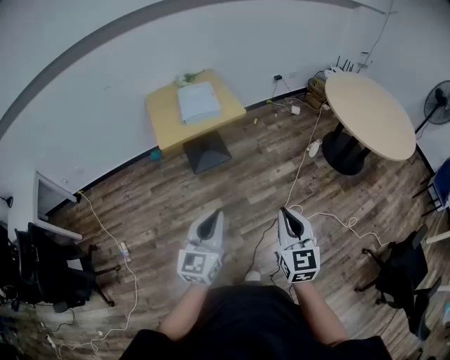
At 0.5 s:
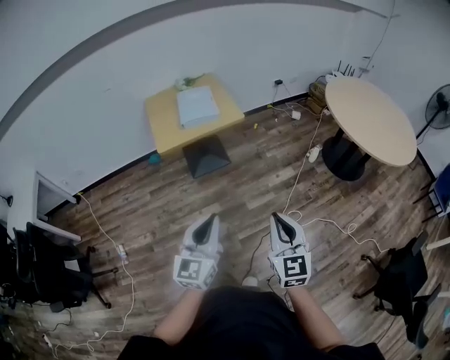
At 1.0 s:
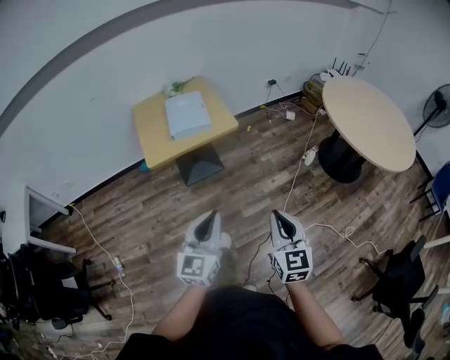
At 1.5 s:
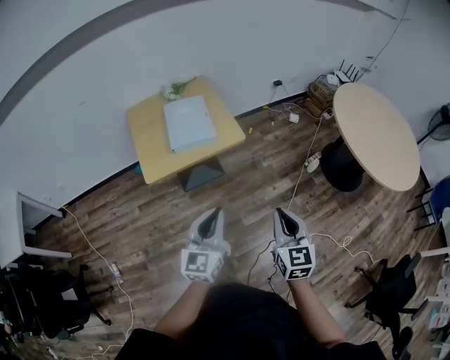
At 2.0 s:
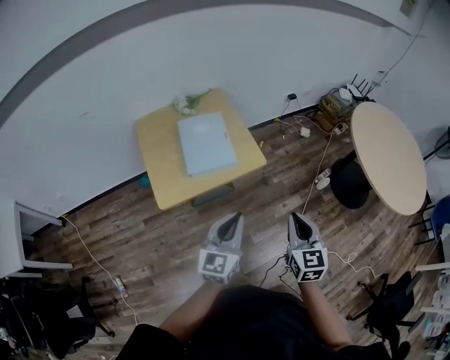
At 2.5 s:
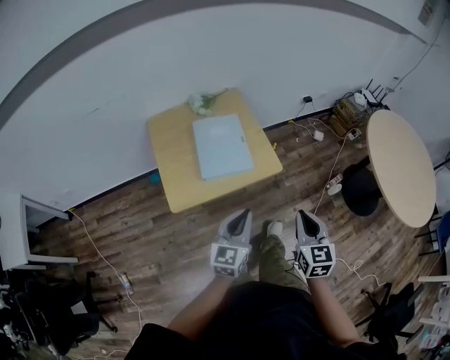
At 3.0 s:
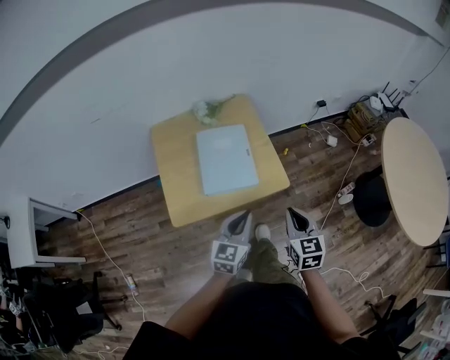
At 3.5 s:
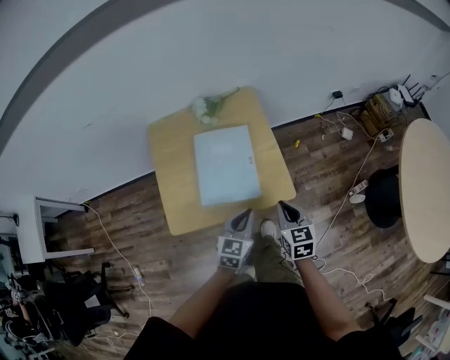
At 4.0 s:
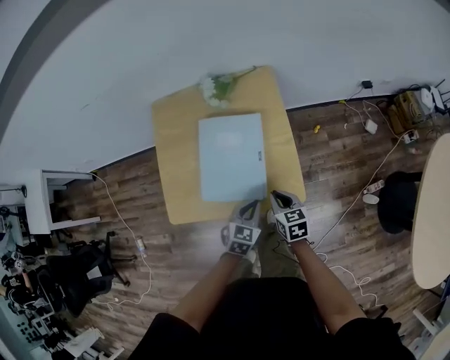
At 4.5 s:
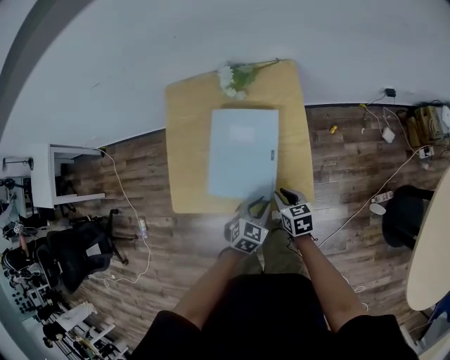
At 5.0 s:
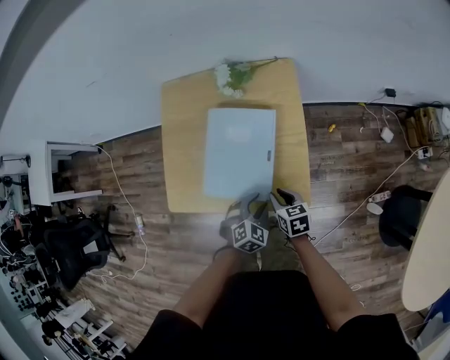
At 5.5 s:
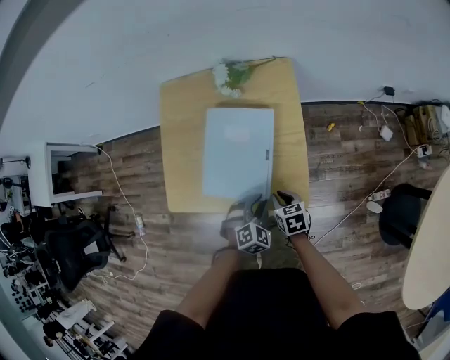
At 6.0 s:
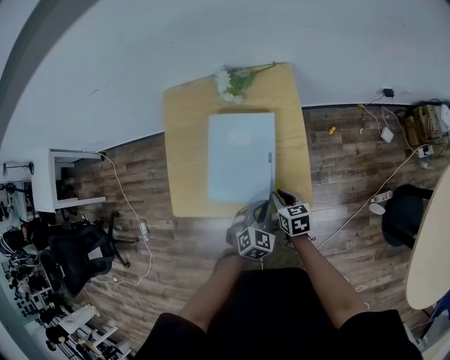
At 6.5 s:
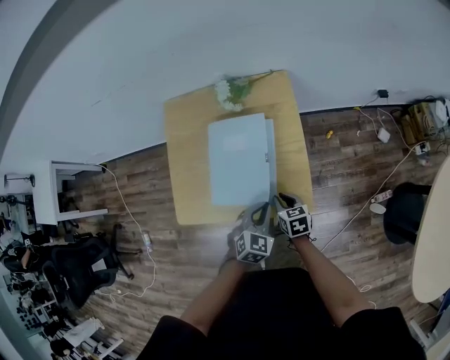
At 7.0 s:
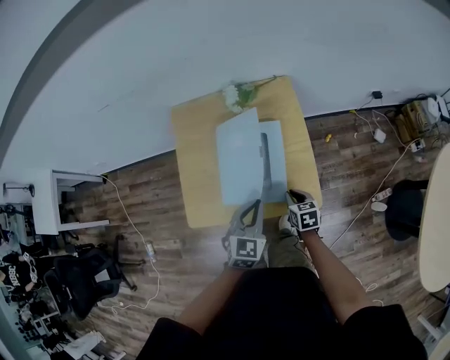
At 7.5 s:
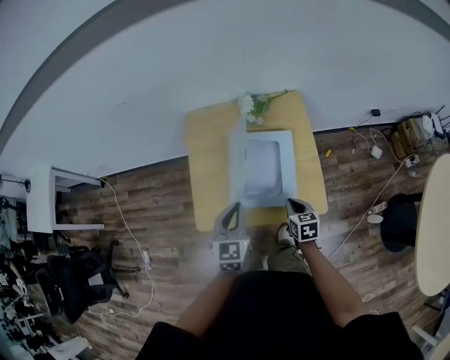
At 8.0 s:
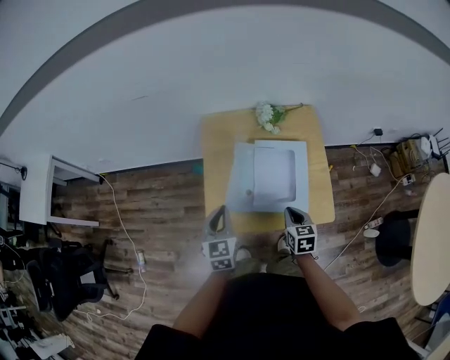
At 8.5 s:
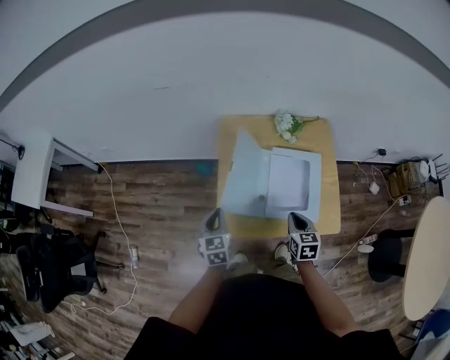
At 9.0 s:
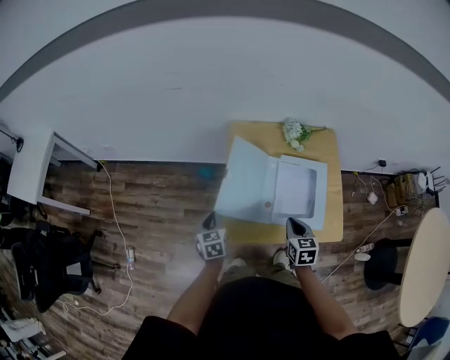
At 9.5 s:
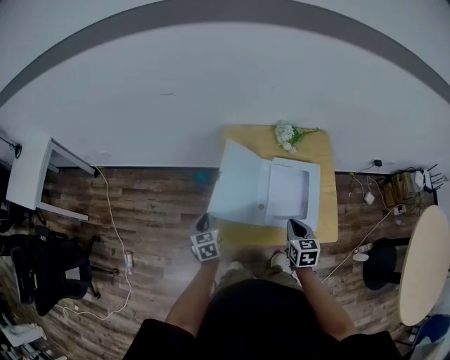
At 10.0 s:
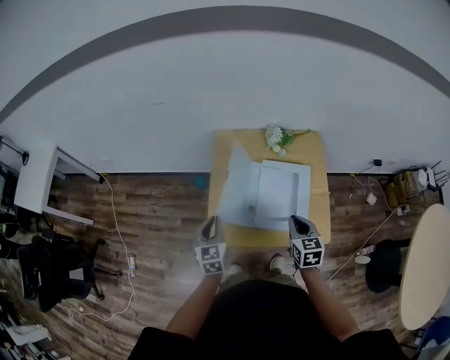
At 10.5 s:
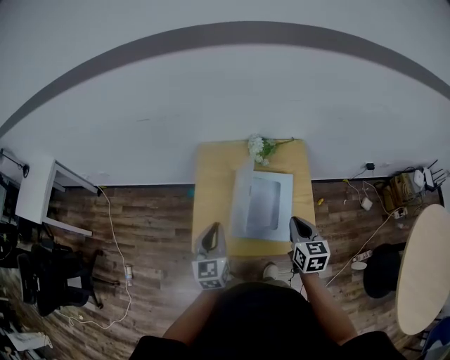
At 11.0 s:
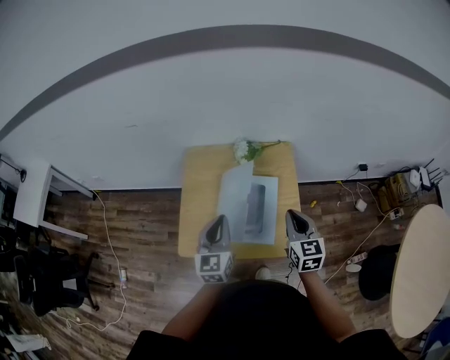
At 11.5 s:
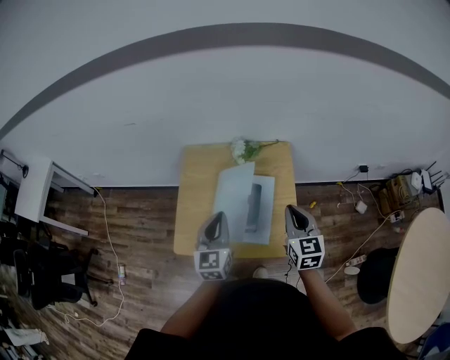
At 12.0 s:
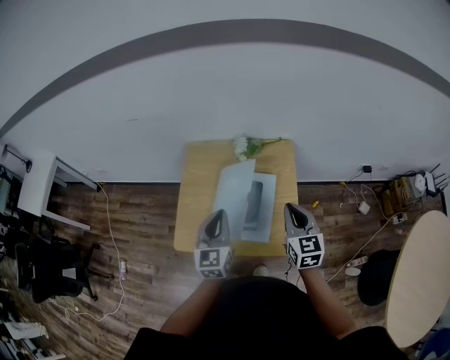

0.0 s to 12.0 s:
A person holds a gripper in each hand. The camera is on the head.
0.0 to 2.0 s: The two grippers travel together, forward, approximately 50 cm.
2.0 to 4.0 s: The right gripper shifts by some 50 cm, and changes its angle by about 40 degrees. The left gripper moves approximately 50 cm, and angles its fingers downward, by some 40 degrees.
4.0 to 6.0 s: The left gripper opens, then closes again. The right gripper changes place by approximately 5 cm.
6.0 to 8.0 s: The left gripper travels to the left and upward by approximately 40 cm, and turns by some 40 degrees. Meanwhile the right gripper moves to the left and upward, approximately 20 cm.
8.0 to 10.0 s: The right gripper moves upward, some 10 cm, and goes to the left and returns, approximately 10 cm each way. The left gripper reaches about 15 cm to the left, then returns.
10.0 to 12.0 s: The grippers both shift to the right and upward by approximately 25 cm.

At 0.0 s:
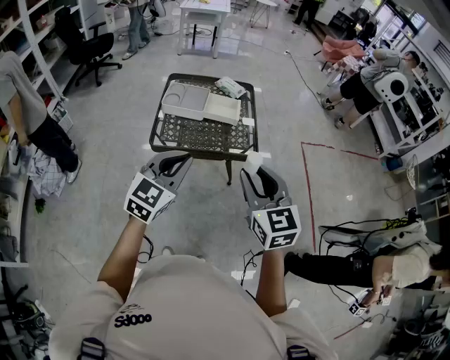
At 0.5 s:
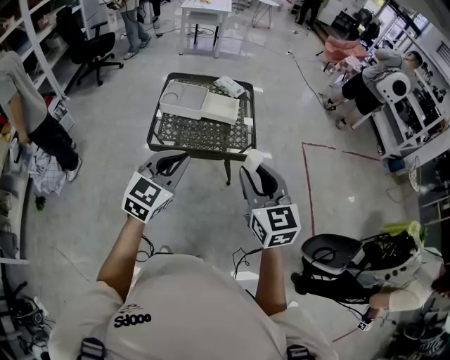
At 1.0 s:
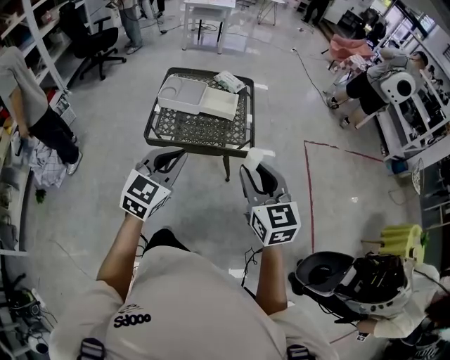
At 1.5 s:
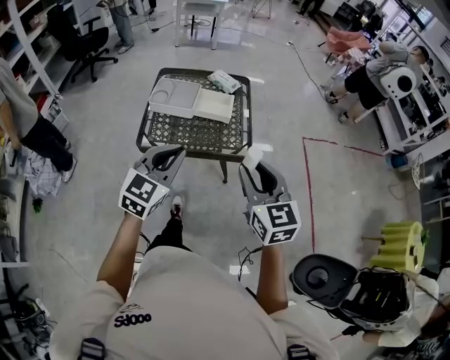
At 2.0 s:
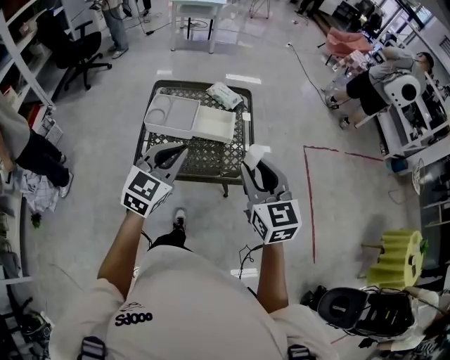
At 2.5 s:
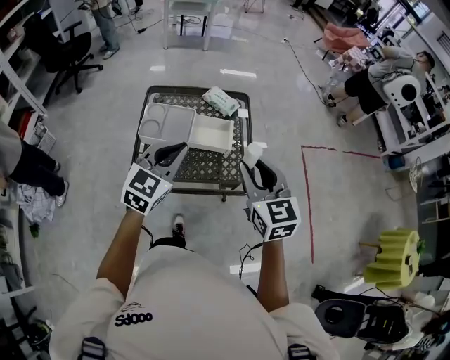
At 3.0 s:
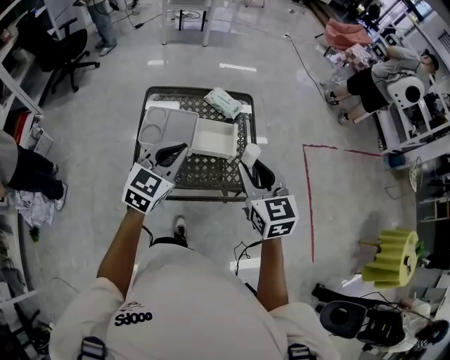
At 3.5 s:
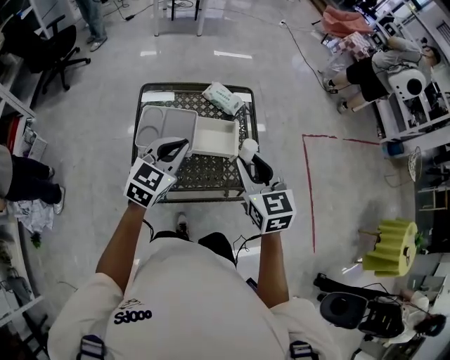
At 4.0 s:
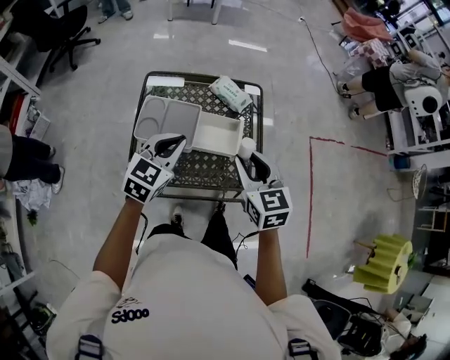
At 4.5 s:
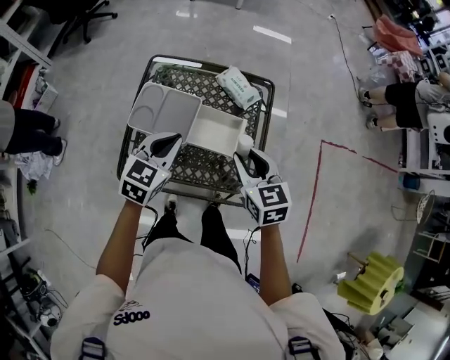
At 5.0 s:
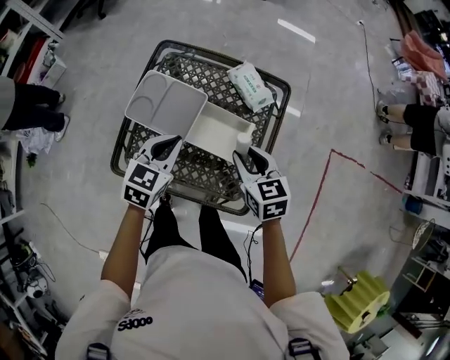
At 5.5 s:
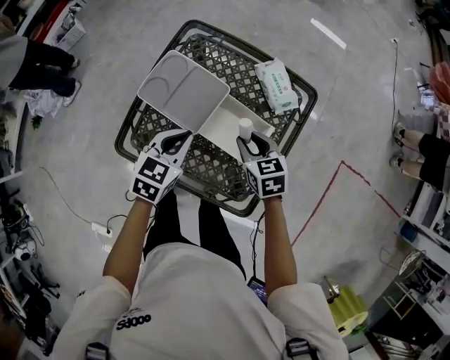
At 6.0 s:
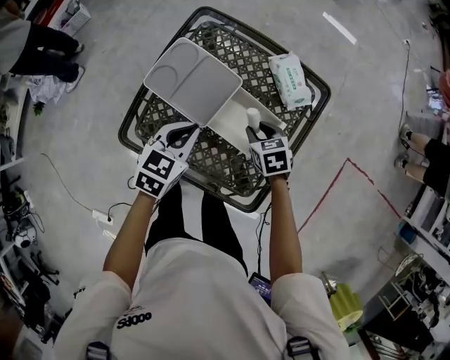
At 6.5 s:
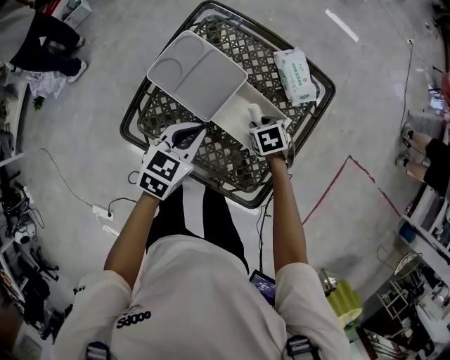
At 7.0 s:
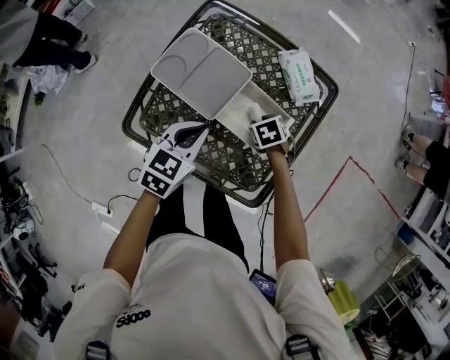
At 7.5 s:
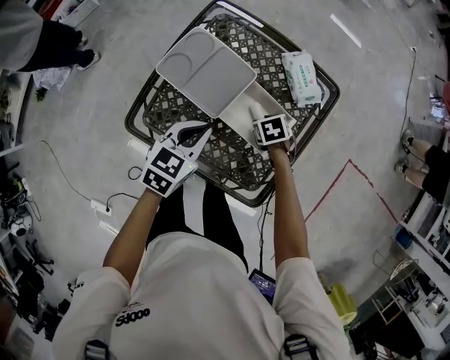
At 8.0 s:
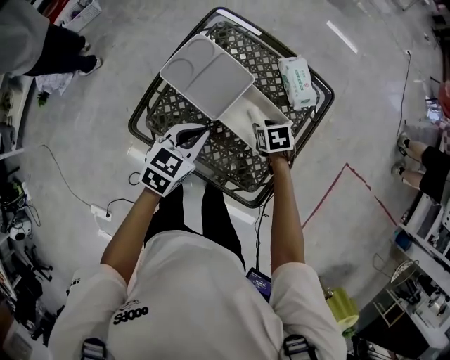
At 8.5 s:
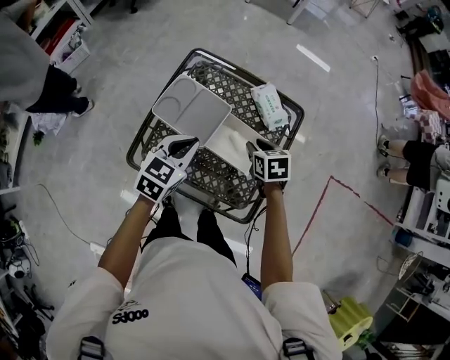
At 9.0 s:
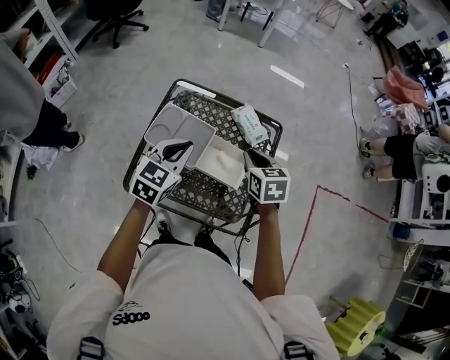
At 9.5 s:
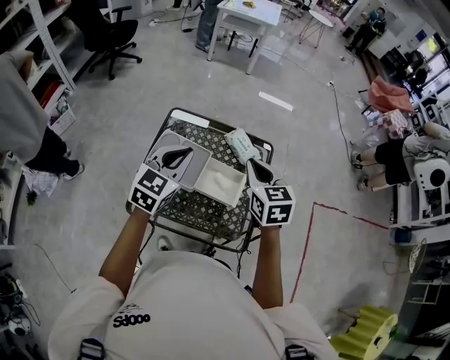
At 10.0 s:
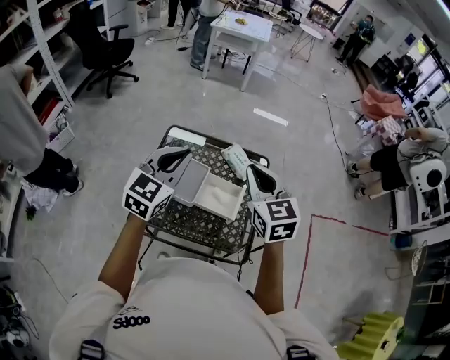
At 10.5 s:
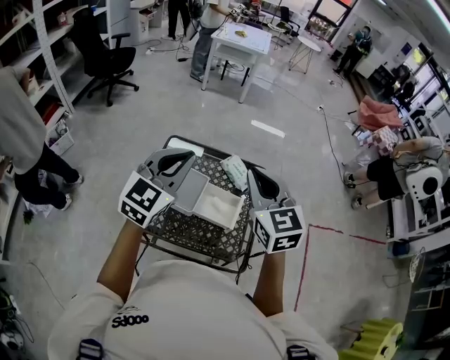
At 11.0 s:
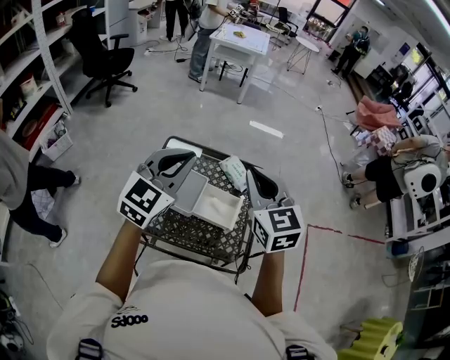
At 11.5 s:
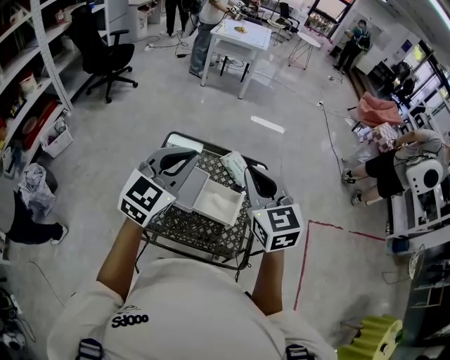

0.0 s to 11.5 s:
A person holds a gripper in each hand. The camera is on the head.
0.0 to 2.0 s: Both grippers move forward, roughly 20 cm.
2.0 to 4.0 s: Both grippers travel together forward and downward, some 20 cm.
4.0 to 6.0 s: The left gripper shifts roughly 15 cm downward, and rotates approximately 30 degrees. The right gripper travels downward by some 30 cm, and tilts its fingers roughly 30 degrees downward.
6.0 to 7.5 s: The right gripper goes roughly 5 cm downward.
7.5 to 9.5 s: The right gripper goes about 40 cm upward, points its fingers some 50 degrees further upward, and closes up. Meanwhile the left gripper moves upward, approximately 20 cm, and changes its angle by some 30 degrees.
9.5 to 11.5 s: The two grippers go some 10 cm upward.

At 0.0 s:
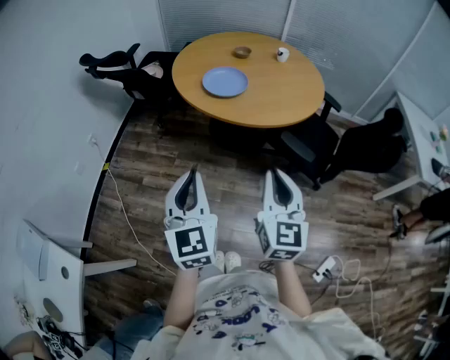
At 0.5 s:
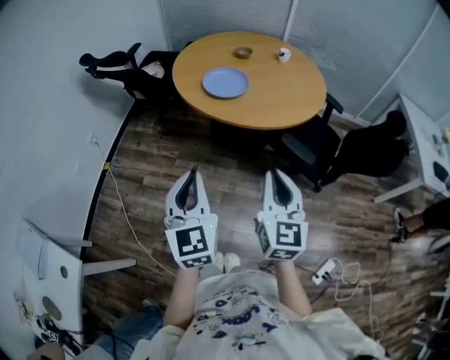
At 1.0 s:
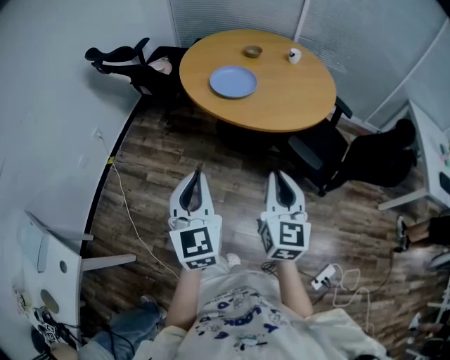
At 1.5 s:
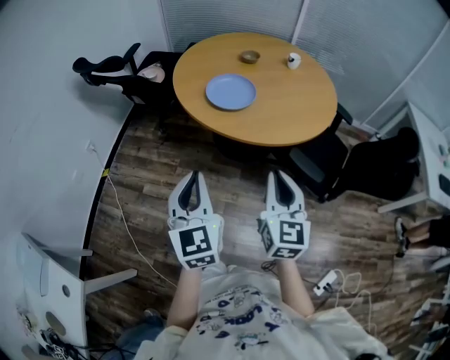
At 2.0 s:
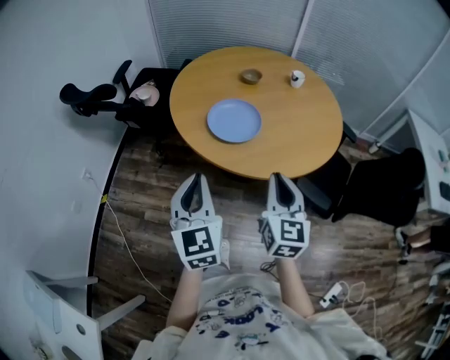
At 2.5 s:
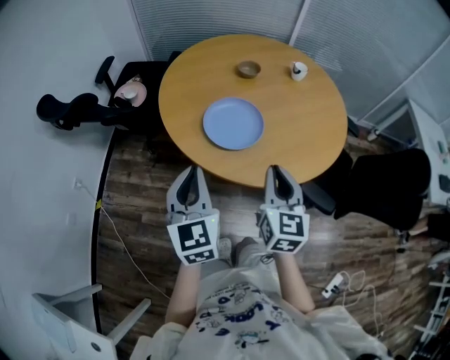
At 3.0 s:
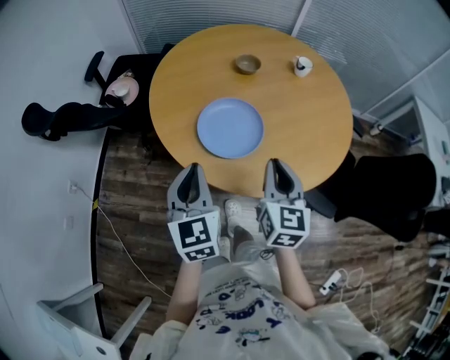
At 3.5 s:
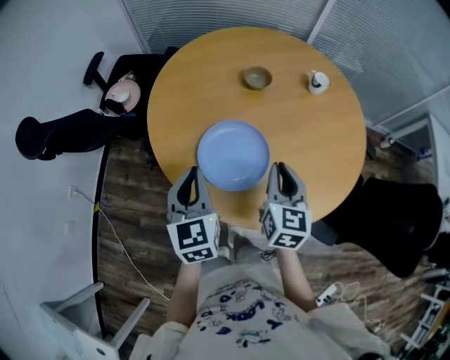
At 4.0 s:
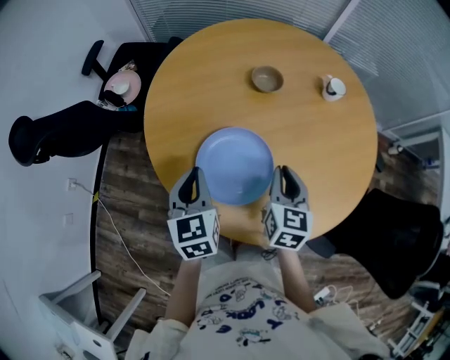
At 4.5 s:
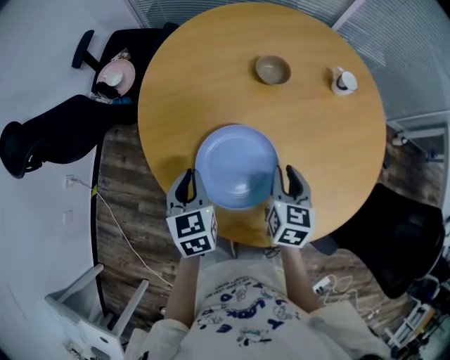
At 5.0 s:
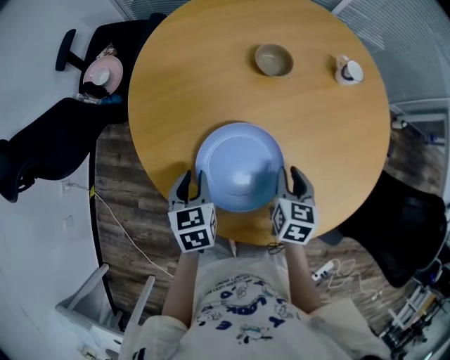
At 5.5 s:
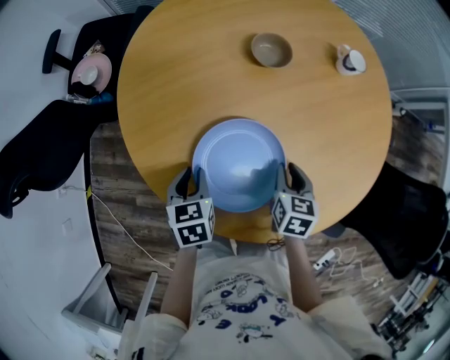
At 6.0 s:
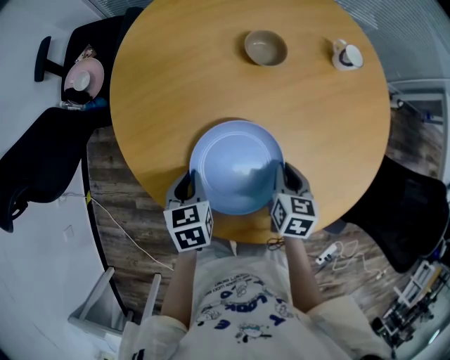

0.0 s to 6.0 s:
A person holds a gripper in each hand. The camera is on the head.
0.0 to 2.0 s: The grippers both shift forward by about 25 cm.
2.0 to 4.0 s: Both grippers travel together forward and downward, some 35 cm. The left gripper turns by about 20 degrees, while the right gripper swivels some 20 degrees.
4.0 to 6.0 s: The grippers both shift downward by some 15 cm. The right gripper swivels some 20 degrees. The left gripper swivels some 30 degrees.
